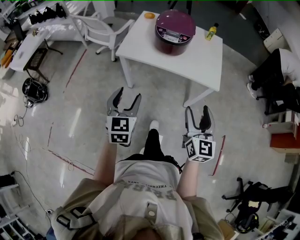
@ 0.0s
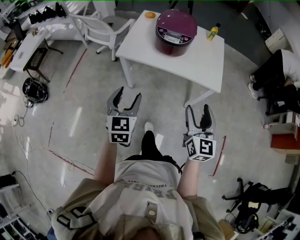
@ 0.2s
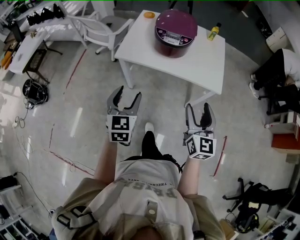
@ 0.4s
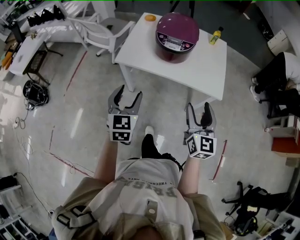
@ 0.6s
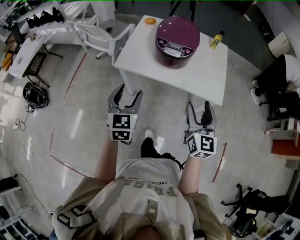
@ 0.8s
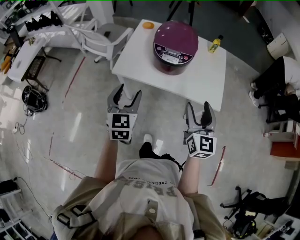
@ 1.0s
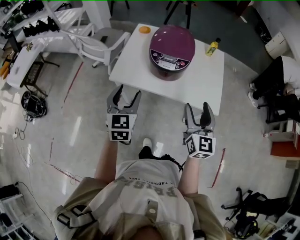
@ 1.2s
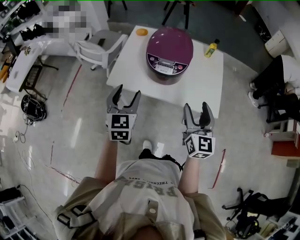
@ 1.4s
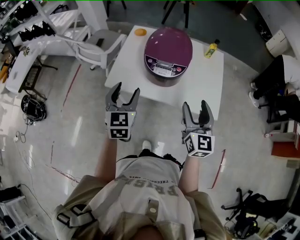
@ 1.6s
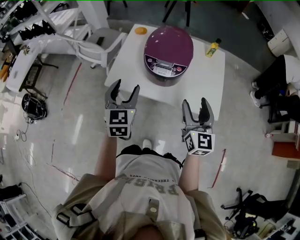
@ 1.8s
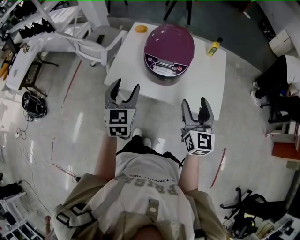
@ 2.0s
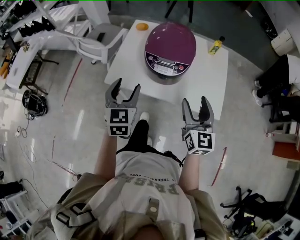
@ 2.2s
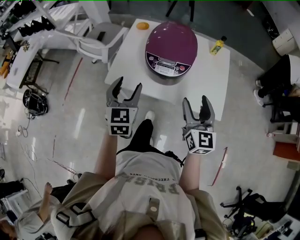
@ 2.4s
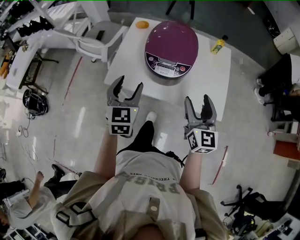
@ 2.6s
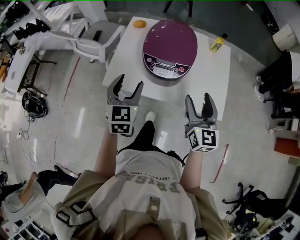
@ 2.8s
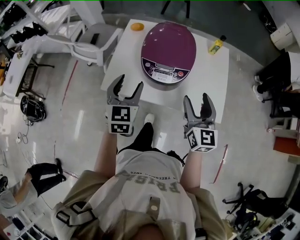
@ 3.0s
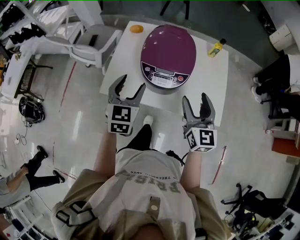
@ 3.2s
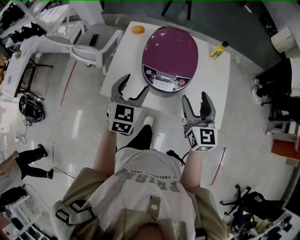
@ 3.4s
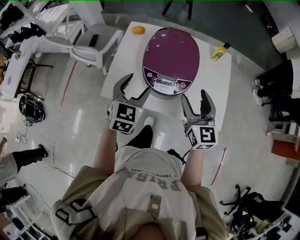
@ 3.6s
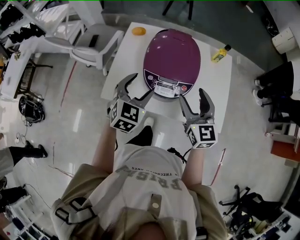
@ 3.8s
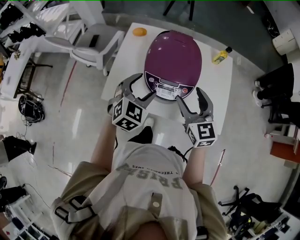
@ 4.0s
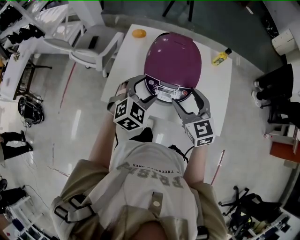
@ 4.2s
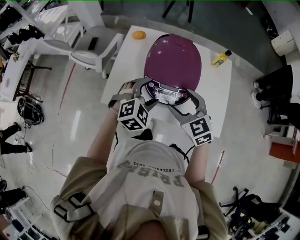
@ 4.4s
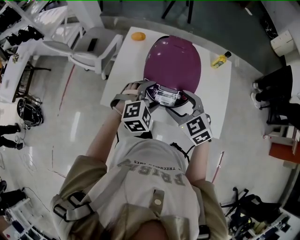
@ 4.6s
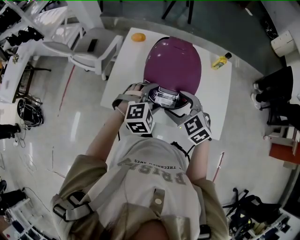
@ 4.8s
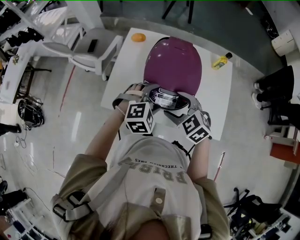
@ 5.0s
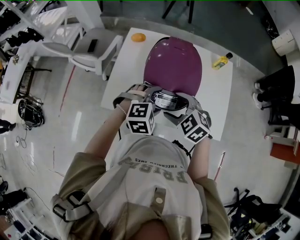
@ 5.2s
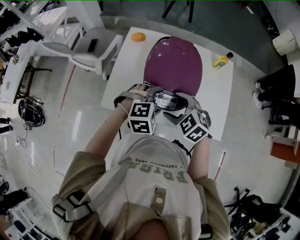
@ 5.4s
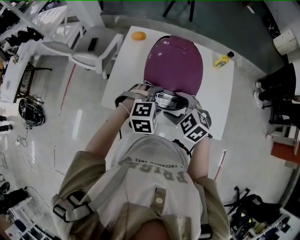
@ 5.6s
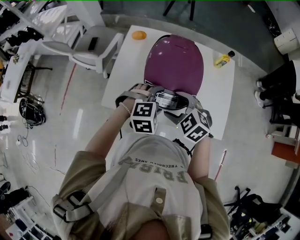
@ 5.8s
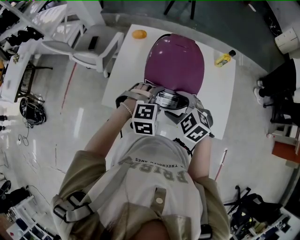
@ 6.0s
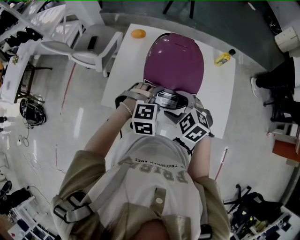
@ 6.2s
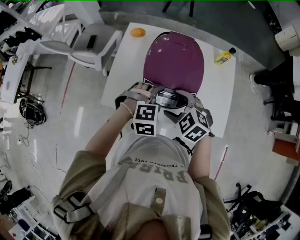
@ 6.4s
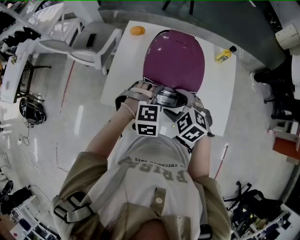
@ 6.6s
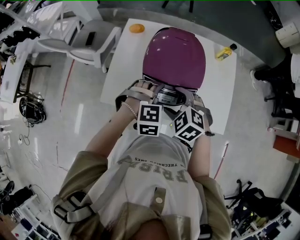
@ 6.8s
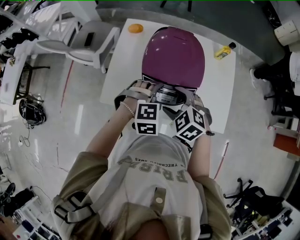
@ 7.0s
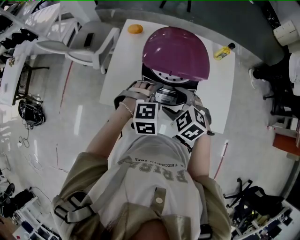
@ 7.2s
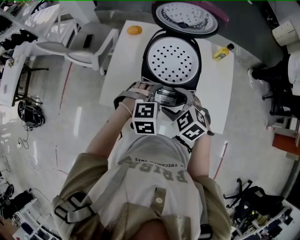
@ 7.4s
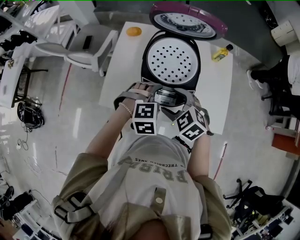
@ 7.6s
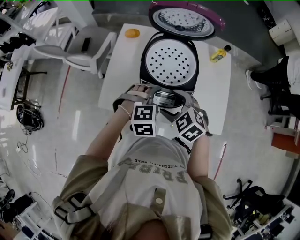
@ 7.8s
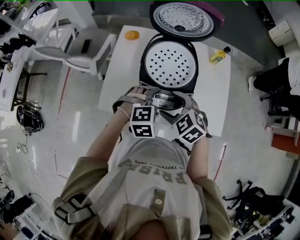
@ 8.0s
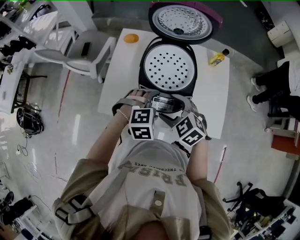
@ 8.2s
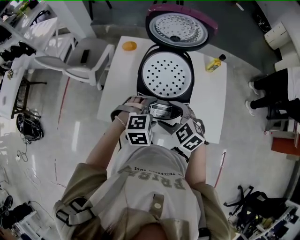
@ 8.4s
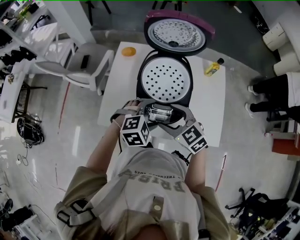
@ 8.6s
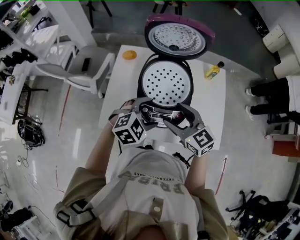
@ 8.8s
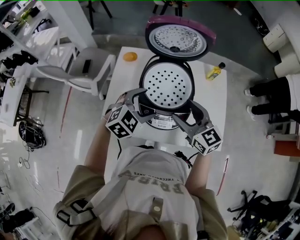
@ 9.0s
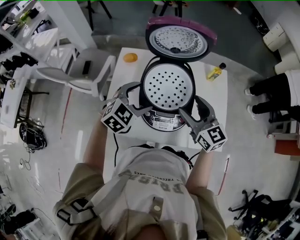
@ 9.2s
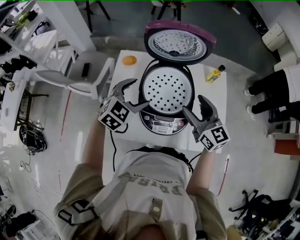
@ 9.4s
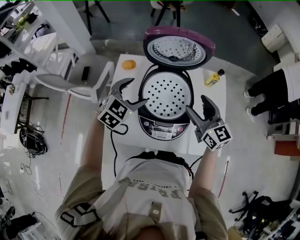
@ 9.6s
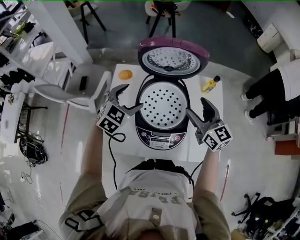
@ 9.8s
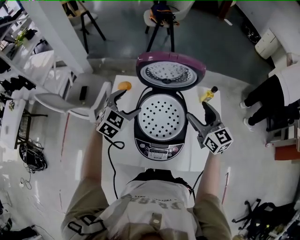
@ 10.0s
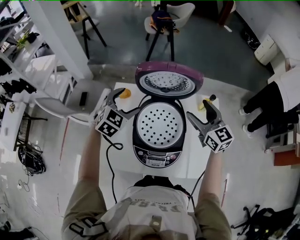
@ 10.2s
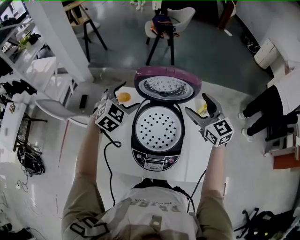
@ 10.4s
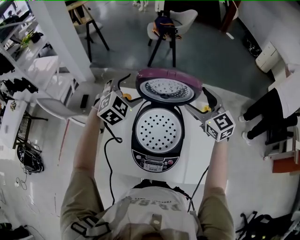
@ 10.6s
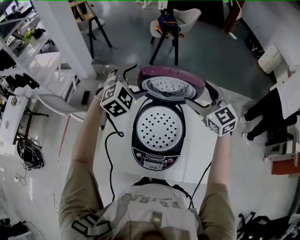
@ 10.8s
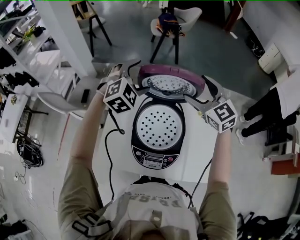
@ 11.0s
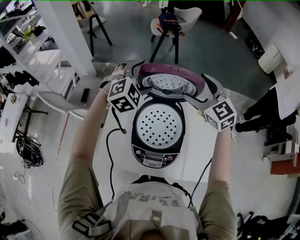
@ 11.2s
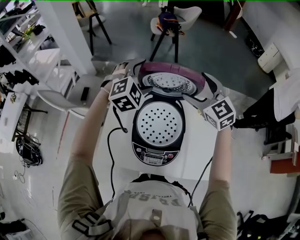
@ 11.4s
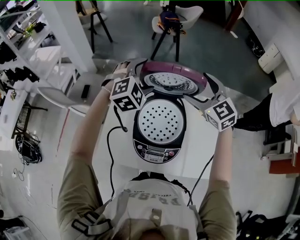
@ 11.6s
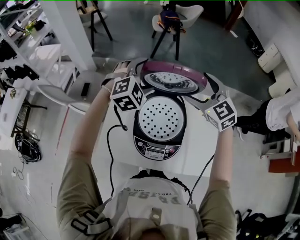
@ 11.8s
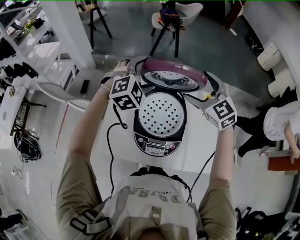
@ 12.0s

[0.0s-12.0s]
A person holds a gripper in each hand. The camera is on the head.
0.0s to 1.6s: Both grippers move forward, some 25 cm.
1.6s to 3.0s: Both grippers move forward, about 10 cm.
3.0s to 4.4s: The right gripper travels to the left and forward by some 15 cm, and changes its angle by about 40 degrees, while the left gripper shifts roughly 10 cm to the right, forward and downward, and turns by some 50 degrees.
4.4s to 6.0s: The right gripper is displaced downward by about 5 cm, and turns by some 30 degrees; the left gripper changes place by approximately 5 cm, and swivels about 30 degrees.
6.0s to 7.6s: There are only small adjustments of the grippers.
7.6s to 9.0s: The left gripper shifts about 10 cm forward and upward, and turns by some 30 degrees. The right gripper travels upward, forward and to the right by approximately 10 cm, and angles its fingers upward, by approximately 40 degrees.
9.0s to 10.4s: Both grippers travel together forward and upward, some 25 cm.
10.4s to 12.0s: The right gripper travels to the left by about 5 cm, and changes its angle by approximately 20 degrees, while the left gripper goes roughly 5 cm upward, and changes its angle by approximately 20 degrees.

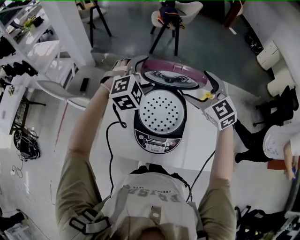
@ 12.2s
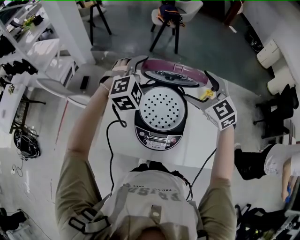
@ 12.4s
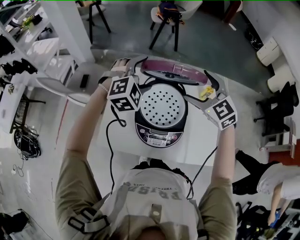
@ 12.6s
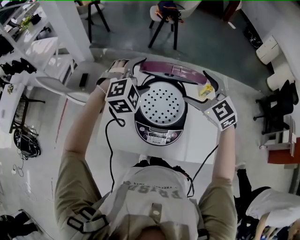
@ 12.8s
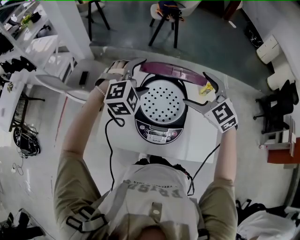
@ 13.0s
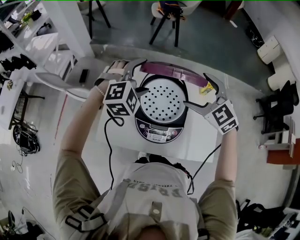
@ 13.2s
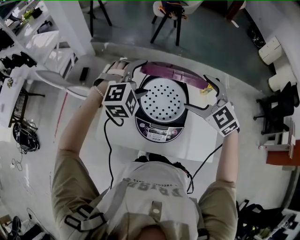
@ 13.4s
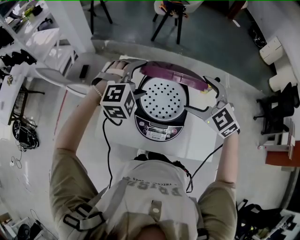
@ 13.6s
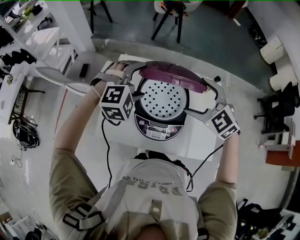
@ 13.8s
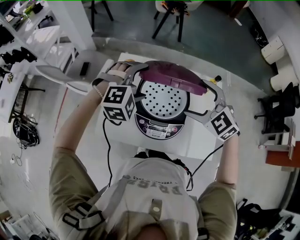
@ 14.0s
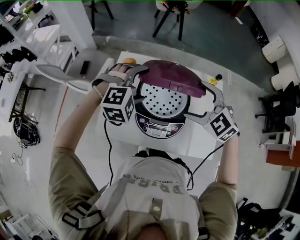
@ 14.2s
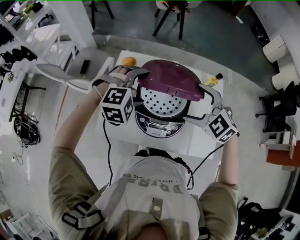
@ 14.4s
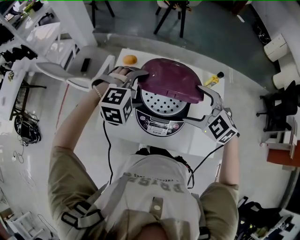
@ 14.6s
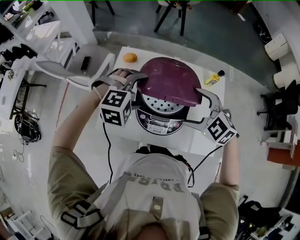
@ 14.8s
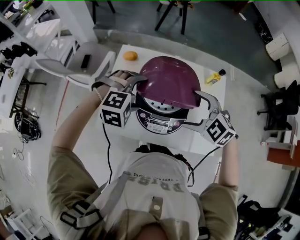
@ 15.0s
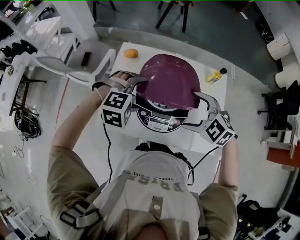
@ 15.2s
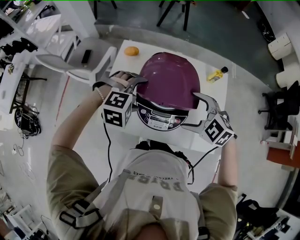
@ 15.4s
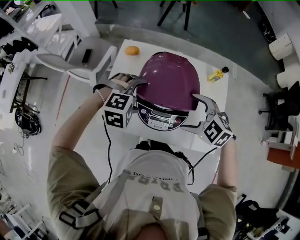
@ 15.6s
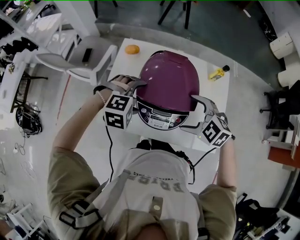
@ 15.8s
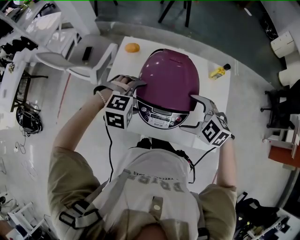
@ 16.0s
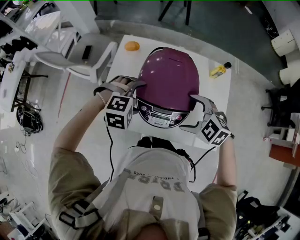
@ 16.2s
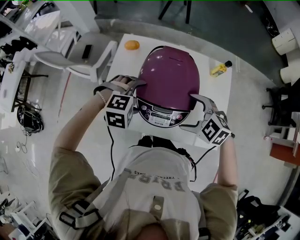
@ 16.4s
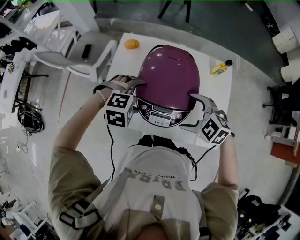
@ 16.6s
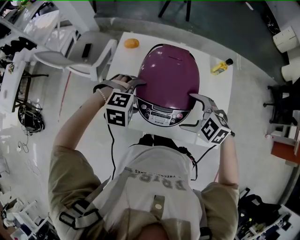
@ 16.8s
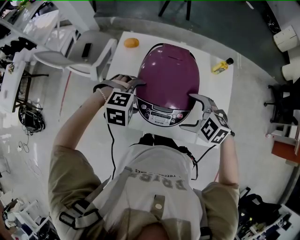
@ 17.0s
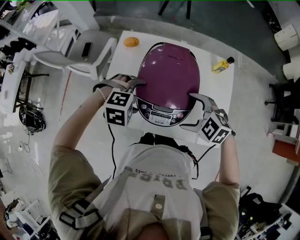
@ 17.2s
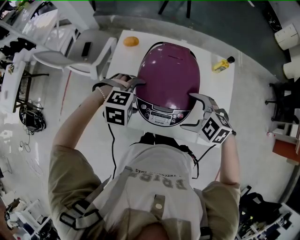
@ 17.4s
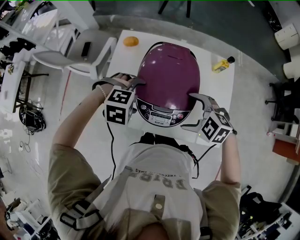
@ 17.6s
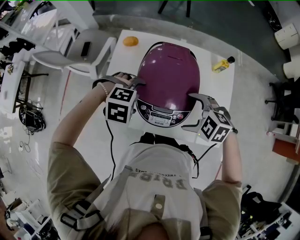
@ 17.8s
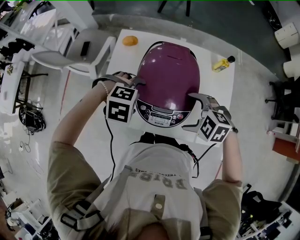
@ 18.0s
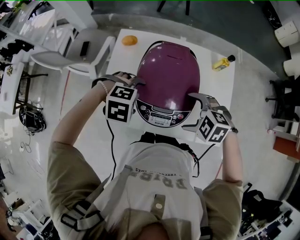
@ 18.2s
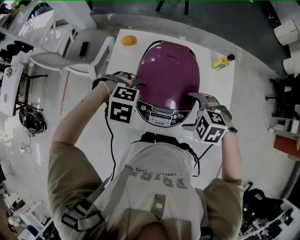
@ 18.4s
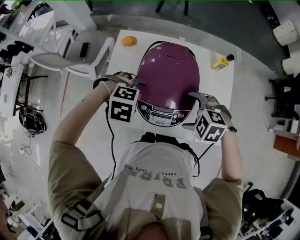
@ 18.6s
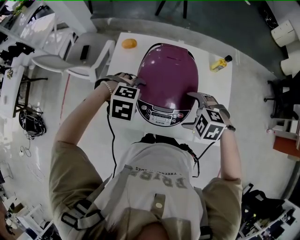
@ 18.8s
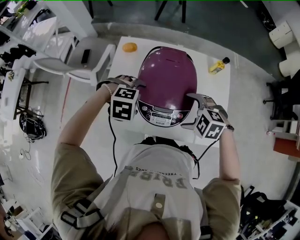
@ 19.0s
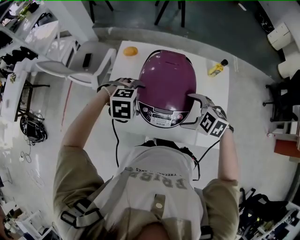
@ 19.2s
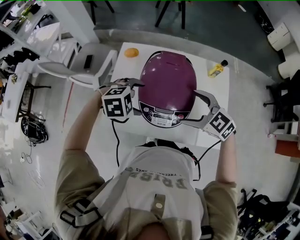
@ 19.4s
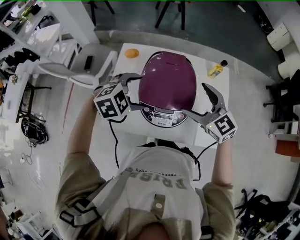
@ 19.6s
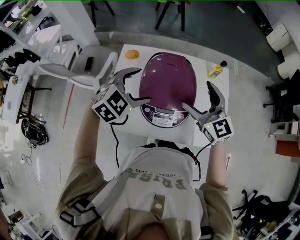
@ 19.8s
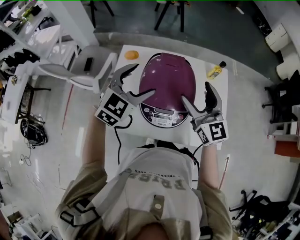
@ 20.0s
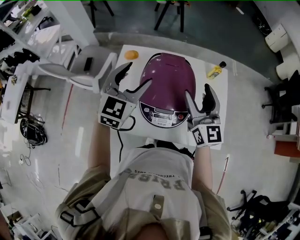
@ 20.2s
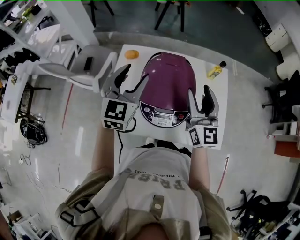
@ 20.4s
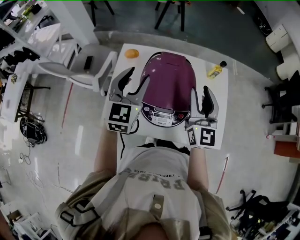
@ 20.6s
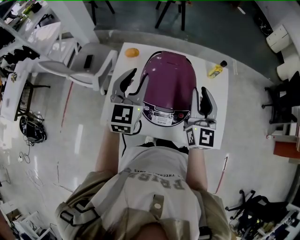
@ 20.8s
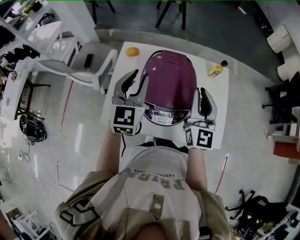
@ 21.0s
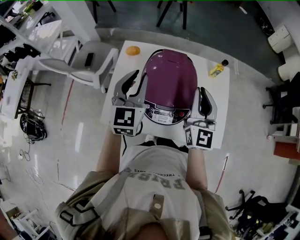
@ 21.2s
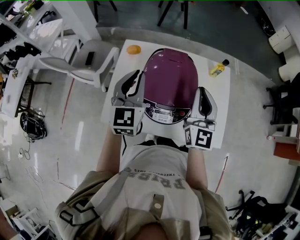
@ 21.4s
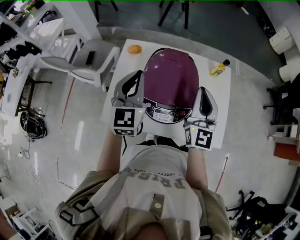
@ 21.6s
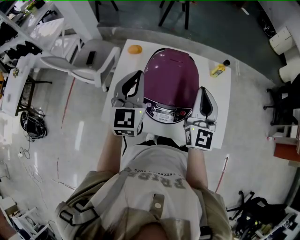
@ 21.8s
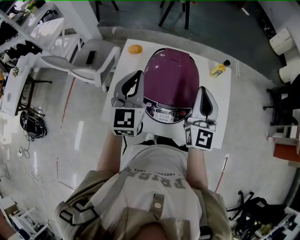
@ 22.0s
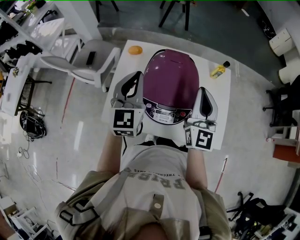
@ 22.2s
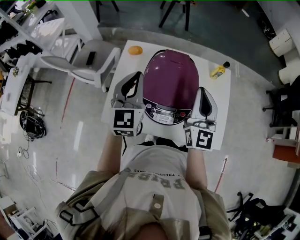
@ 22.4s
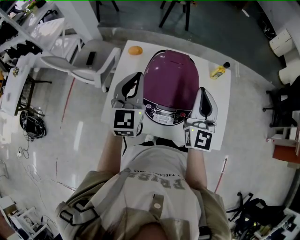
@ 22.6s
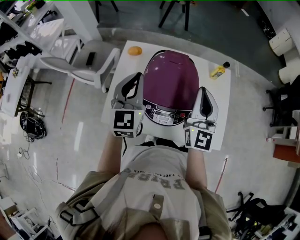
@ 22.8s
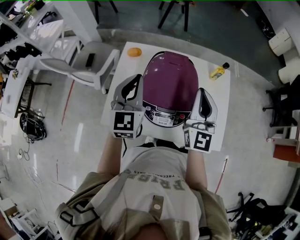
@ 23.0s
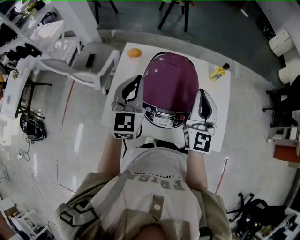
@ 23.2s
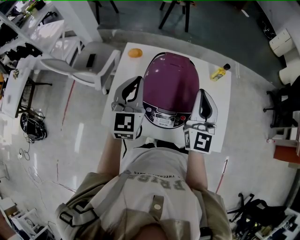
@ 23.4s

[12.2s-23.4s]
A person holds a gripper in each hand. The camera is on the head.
12.2s to 13.8s: The grippers both shift backward by about 10 cm.
13.8s to 15.4s: The grippers both shift downward and backward by roughly 10 cm. The left gripper turns by approximately 20 degrees.
15.4s to 17.0s: The right gripper travels downward by roughly 5 cm; the left gripper changes place by some 5 cm.
17.0s to 18.6s: The grippers move only a little.
18.6s to 20.2s: The two grippers go roughly 20 cm upward. The right gripper tilts its fingers some 70 degrees upward, while the left gripper tips its fingers upward by roughly 70 degrees.
20.2s to 21.8s: The right gripper closes, while the left gripper rotates approximately 20 degrees, and closes up.
21.8s to 23.4s: The grippers move only a little.

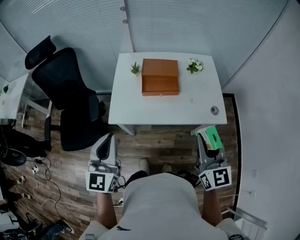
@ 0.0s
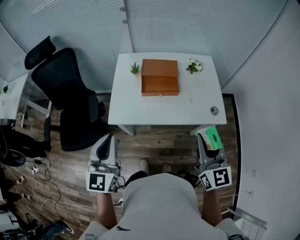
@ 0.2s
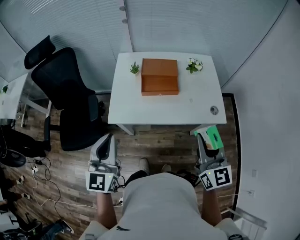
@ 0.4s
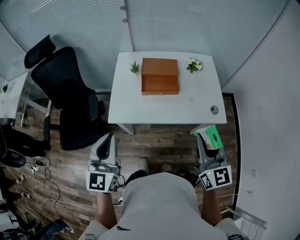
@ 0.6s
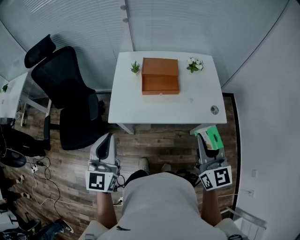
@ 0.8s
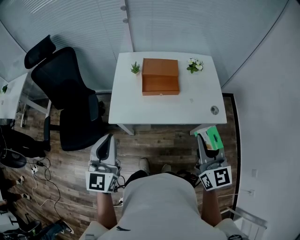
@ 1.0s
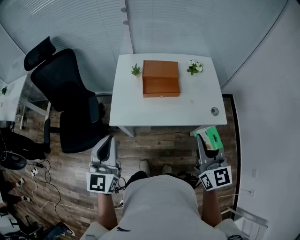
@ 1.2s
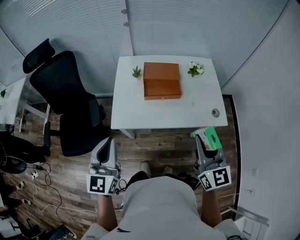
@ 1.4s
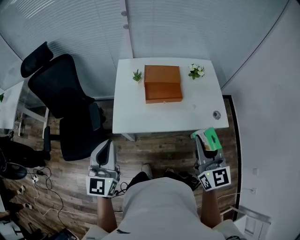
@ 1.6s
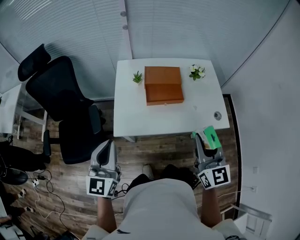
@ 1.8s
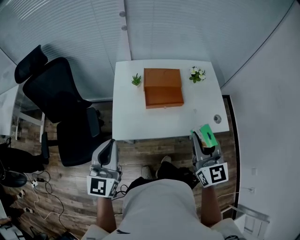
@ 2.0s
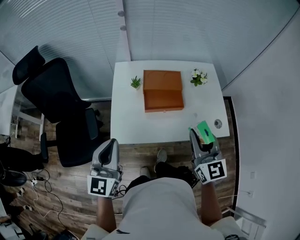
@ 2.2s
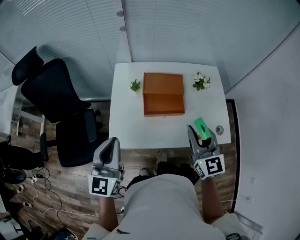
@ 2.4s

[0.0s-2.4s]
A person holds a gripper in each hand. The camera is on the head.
0.0s to 1.2s: The grippers move only a little.
1.2s to 2.4s: The grippers both shift forward by roughly 15 cm.
